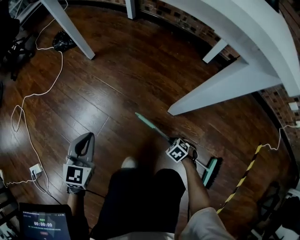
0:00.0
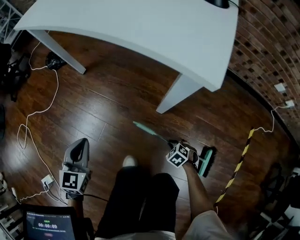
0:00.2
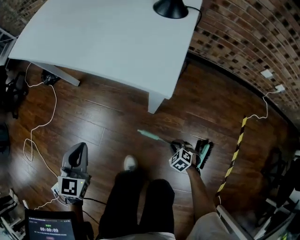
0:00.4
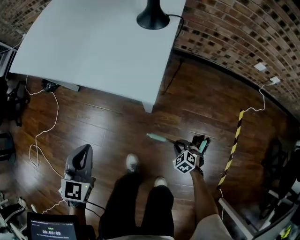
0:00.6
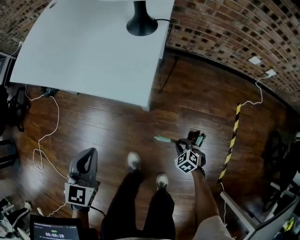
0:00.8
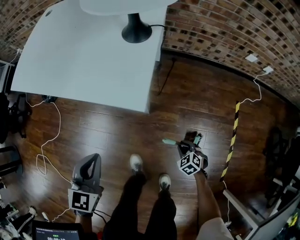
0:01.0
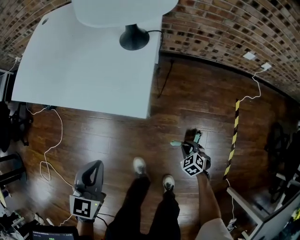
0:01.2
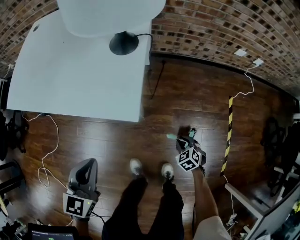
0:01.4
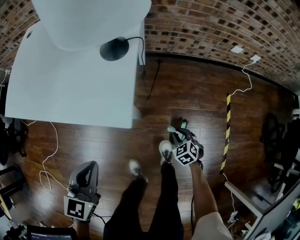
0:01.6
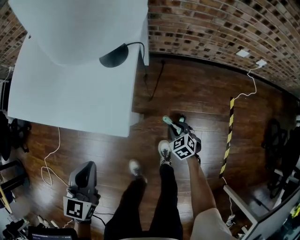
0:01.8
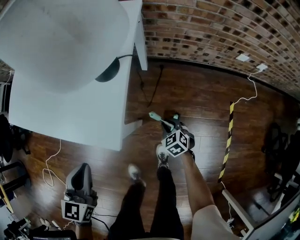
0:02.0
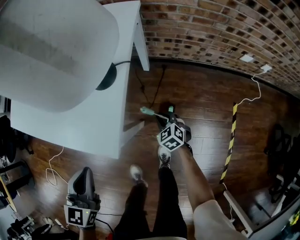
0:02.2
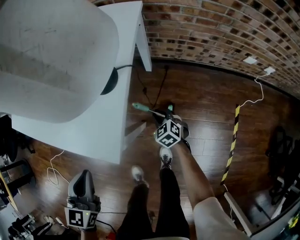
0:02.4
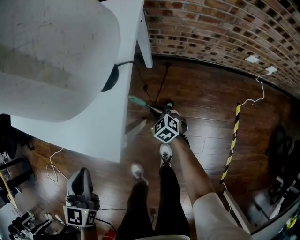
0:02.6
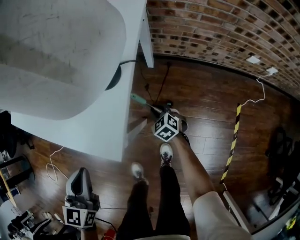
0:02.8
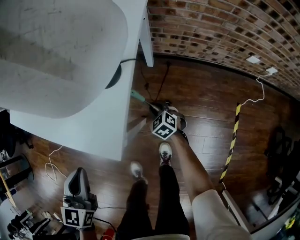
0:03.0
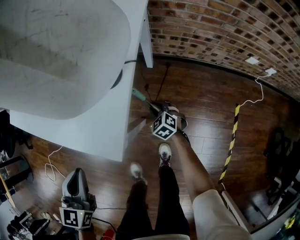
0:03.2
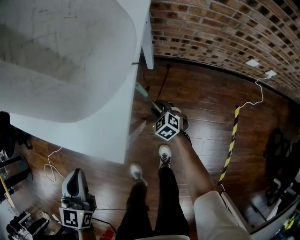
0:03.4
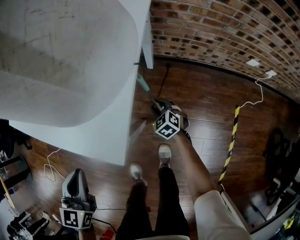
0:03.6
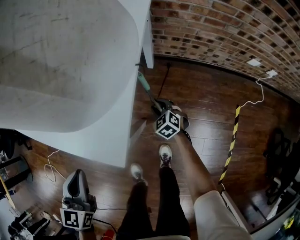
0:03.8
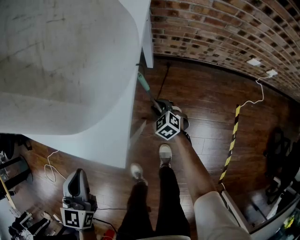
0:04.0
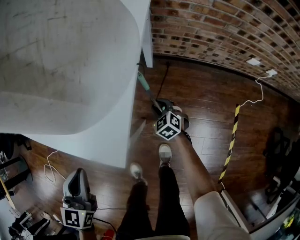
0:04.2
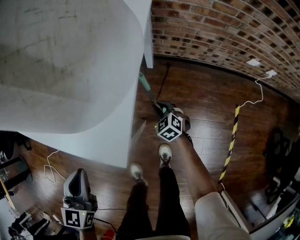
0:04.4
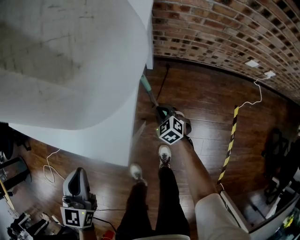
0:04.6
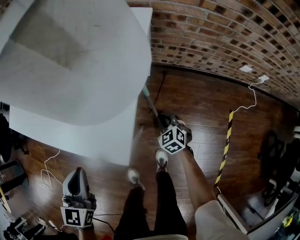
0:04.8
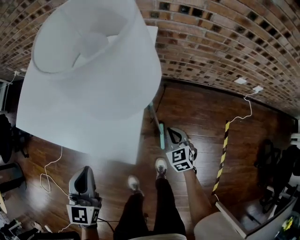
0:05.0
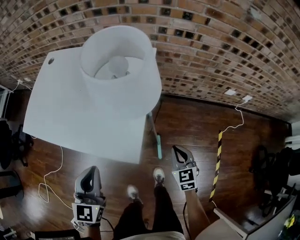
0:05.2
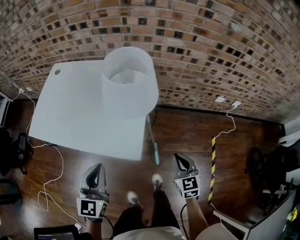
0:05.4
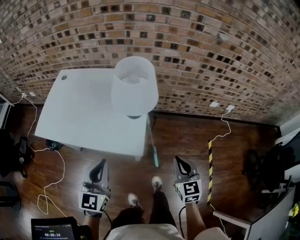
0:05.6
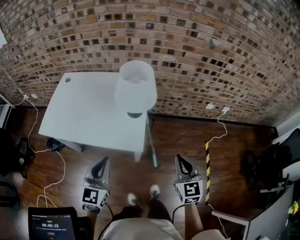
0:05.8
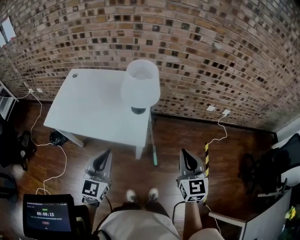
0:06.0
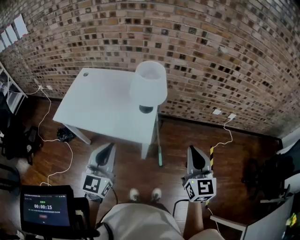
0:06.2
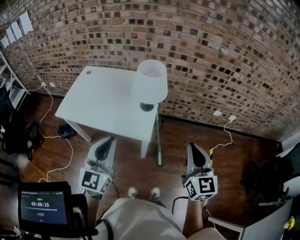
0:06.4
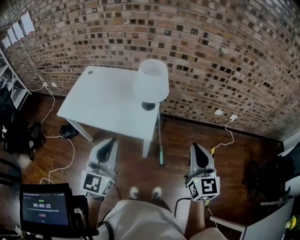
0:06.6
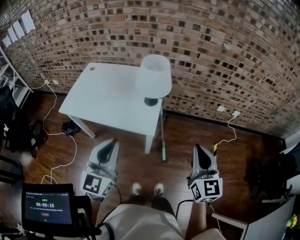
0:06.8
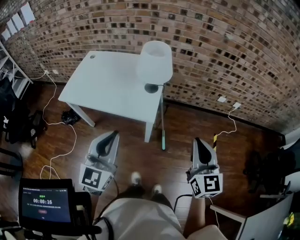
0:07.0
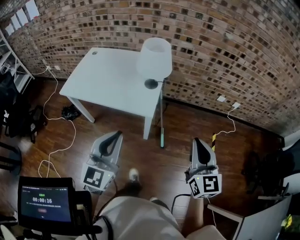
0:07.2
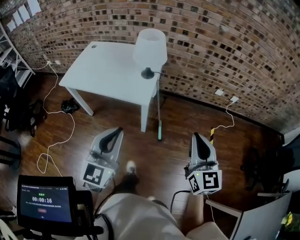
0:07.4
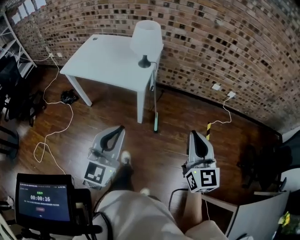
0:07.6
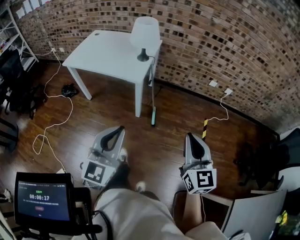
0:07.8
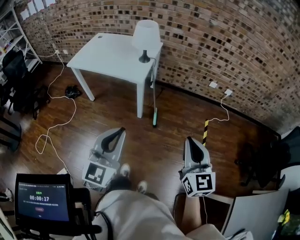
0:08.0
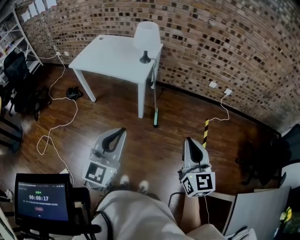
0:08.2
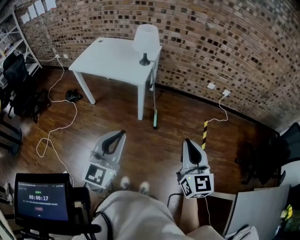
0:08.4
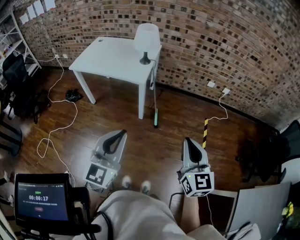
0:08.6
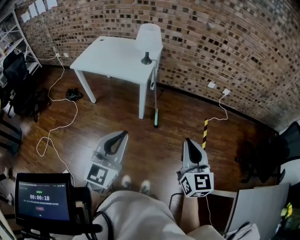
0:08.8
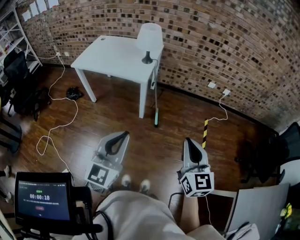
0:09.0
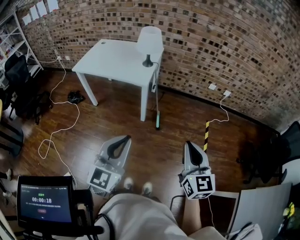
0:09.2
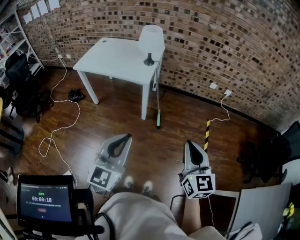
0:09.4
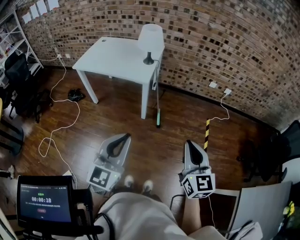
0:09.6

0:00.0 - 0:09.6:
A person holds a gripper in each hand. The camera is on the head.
0:00.0 - 0:01.6: Both grippers travel together upward, some 40 cm. The left gripper changes its angle by about 30 degrees; the right gripper changes its angle by roughly 40 degrees.
0:01.6 - 0:03.2: The right gripper shifts approximately 25 cm forward, while the left gripper travels forward by roughly 10 cm, and changes its angle by roughly 20 degrees.
0:03.2 - 0:04.8: The right gripper goes roughly 5 cm upward, and closes.
0:04.8 - 0:06.4: The right gripper travels upward and backward by approximately 70 cm, and points its fingers roughly 40 degrees further upward. The left gripper moves upward and backward, some 35 cm, and tilts its fingers approximately 30 degrees upward.
0:06.4 - 0:08.0: The left gripper is displaced backward and to the right by roughly 40 cm, while the right gripper travels backward by about 35 cm.
0:08.0 - 0:09.6: The two grippers go approximately 5 cm backward.

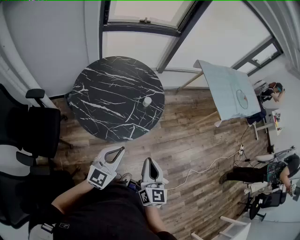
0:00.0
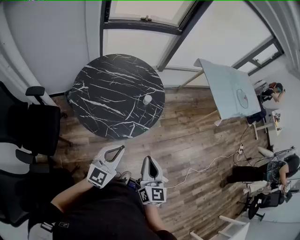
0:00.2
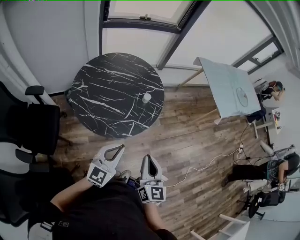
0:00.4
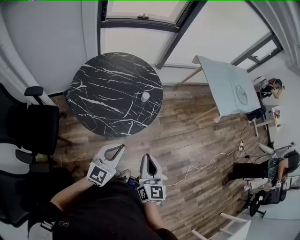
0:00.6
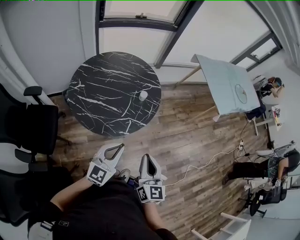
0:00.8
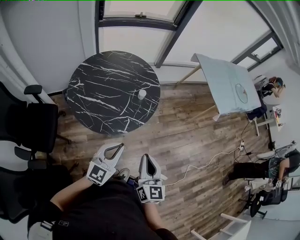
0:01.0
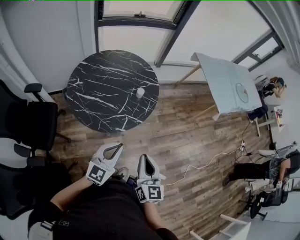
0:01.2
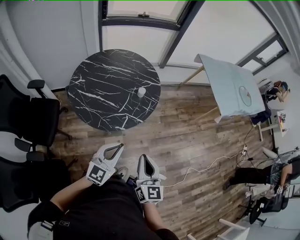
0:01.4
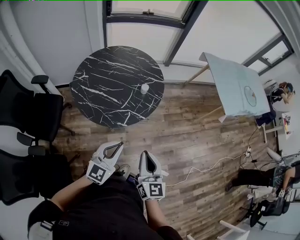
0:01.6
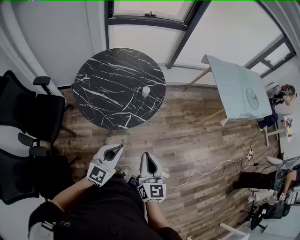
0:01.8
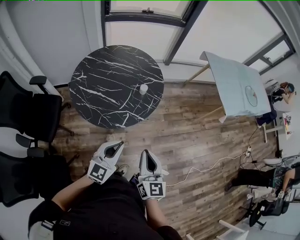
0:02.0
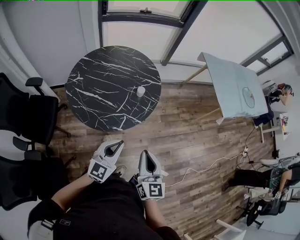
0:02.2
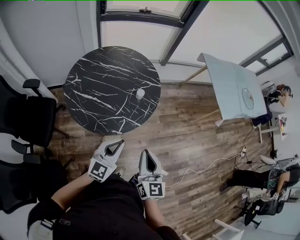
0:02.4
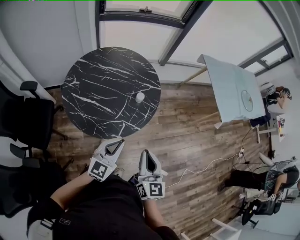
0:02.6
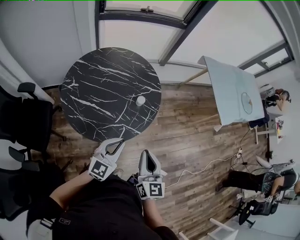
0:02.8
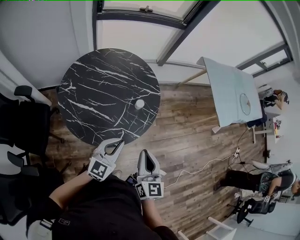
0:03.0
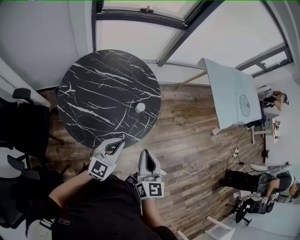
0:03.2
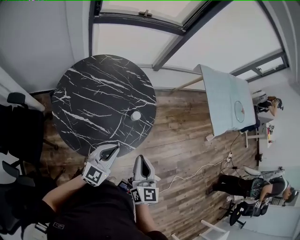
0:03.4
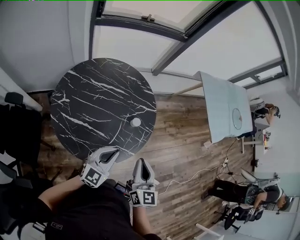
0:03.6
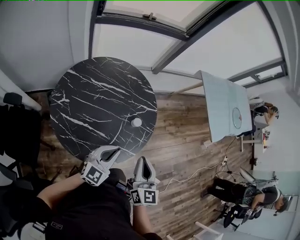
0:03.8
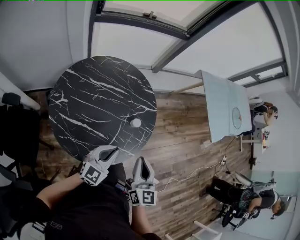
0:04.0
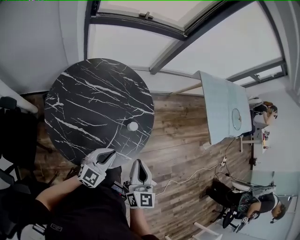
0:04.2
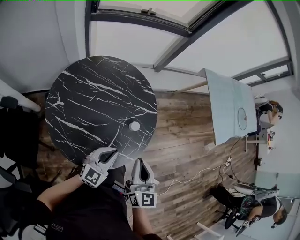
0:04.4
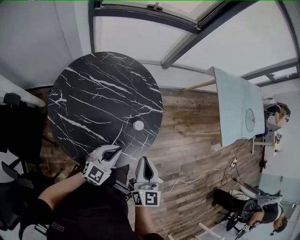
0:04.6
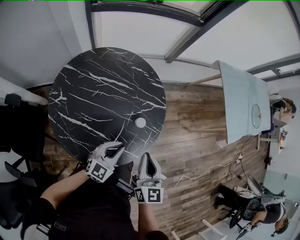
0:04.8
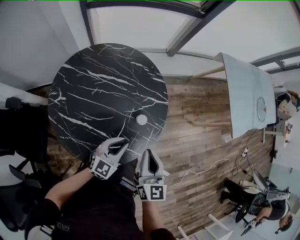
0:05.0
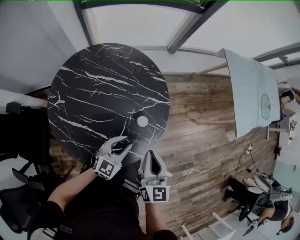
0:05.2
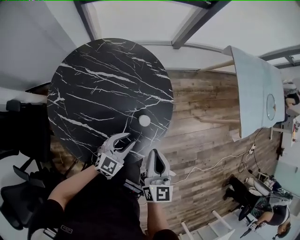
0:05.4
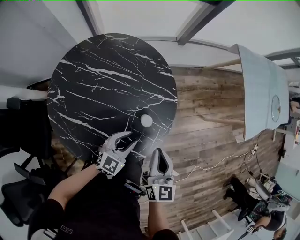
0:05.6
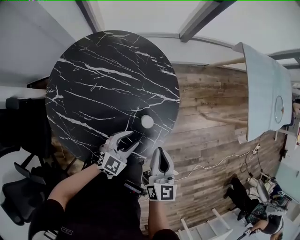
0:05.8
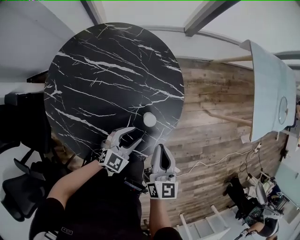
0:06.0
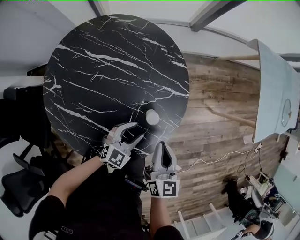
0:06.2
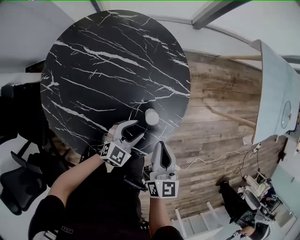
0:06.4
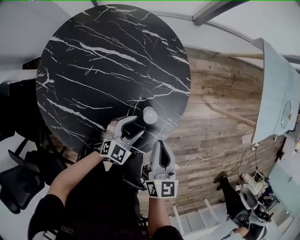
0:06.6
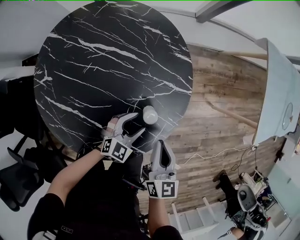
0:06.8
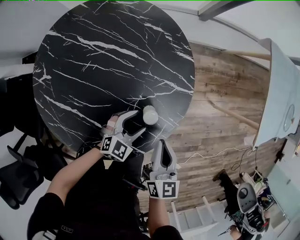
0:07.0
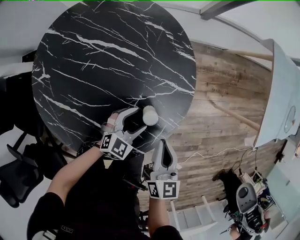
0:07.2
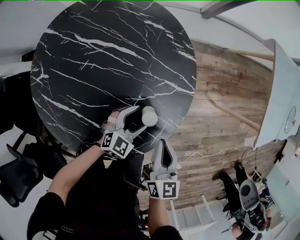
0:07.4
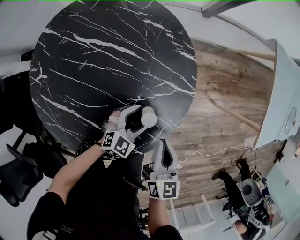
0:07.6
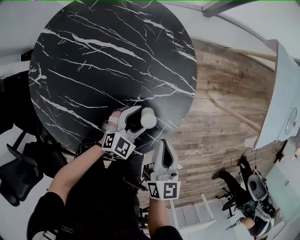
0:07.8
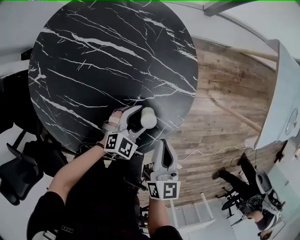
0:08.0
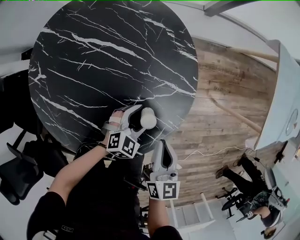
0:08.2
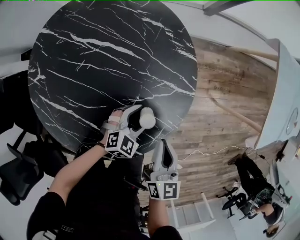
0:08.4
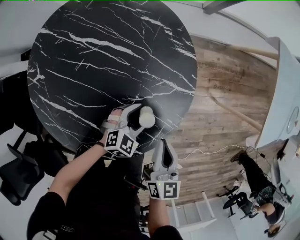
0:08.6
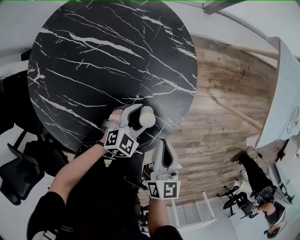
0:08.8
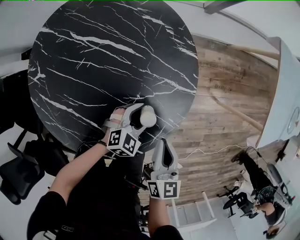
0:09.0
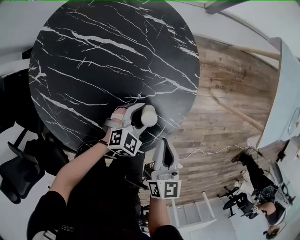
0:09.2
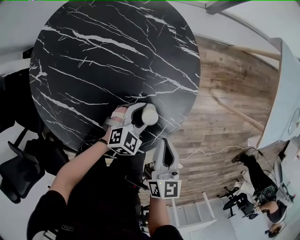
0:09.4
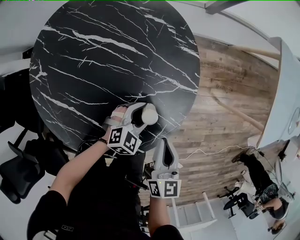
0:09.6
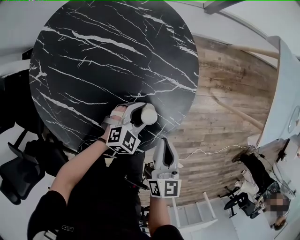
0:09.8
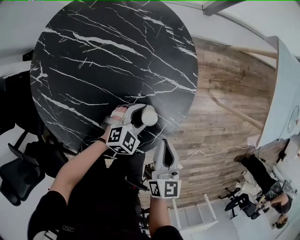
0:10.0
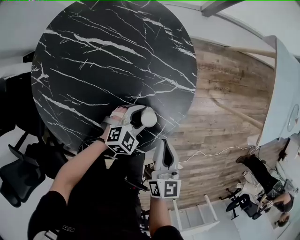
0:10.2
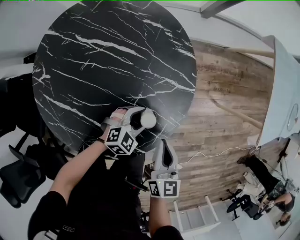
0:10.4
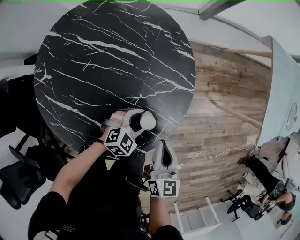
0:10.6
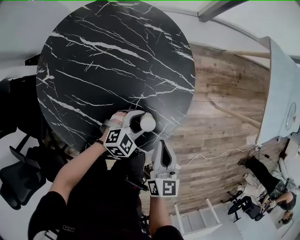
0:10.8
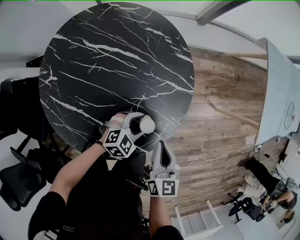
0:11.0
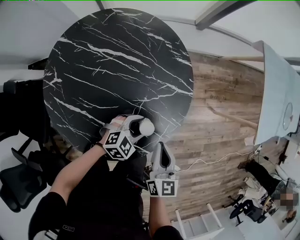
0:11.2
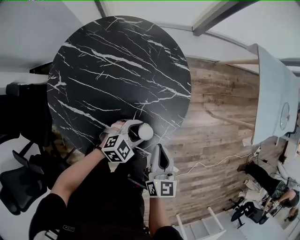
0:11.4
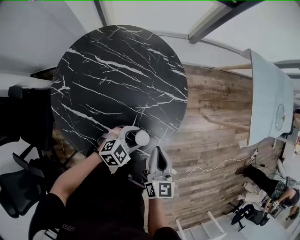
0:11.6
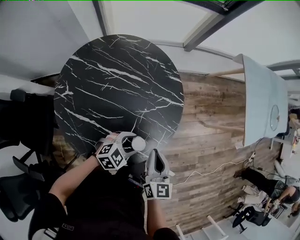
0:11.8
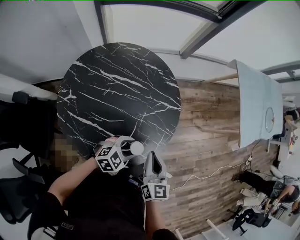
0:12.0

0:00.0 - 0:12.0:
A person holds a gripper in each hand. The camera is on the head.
0:00.0 - 0:01.6: Both grippers move to the right, approximately 10 cm.
0:01.6 - 0:03.0: The grippers both shift forward by roughly 20 cm.
0:03.0 - 0:04.4: The left gripper moves forward and downward, about 15 cm, while the right gripper goes about 15 cm forward and to the left.
0:04.4 - 0:06.0: Both grippers travel together downward and forward, some 20 cm. The left gripper opens its fingers.
0:06.0 - 0:07.6: The right gripper goes approximately 5 cm downward. Meanwhile the left gripper shifts roughly 10 cm downward and forward, and opens up.
0:07.6 - 0:10.4: The grippers move only a little.
0:10.4 - 0:12.0: Both grippers move upward and backward, roughly 15 cm.

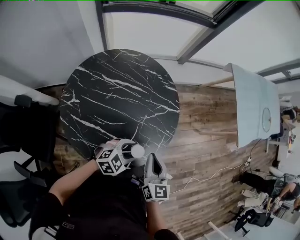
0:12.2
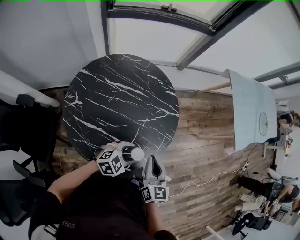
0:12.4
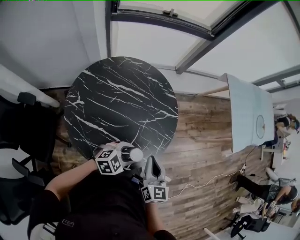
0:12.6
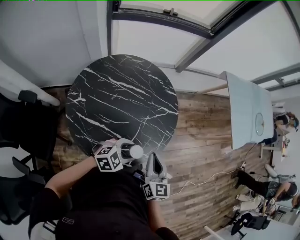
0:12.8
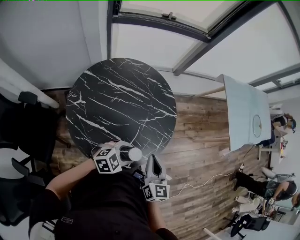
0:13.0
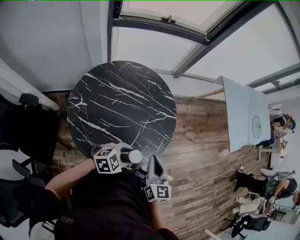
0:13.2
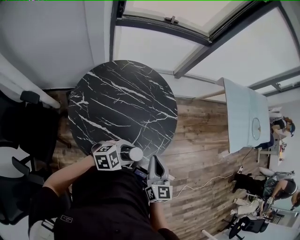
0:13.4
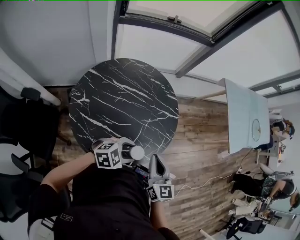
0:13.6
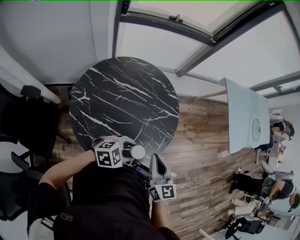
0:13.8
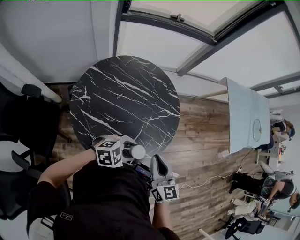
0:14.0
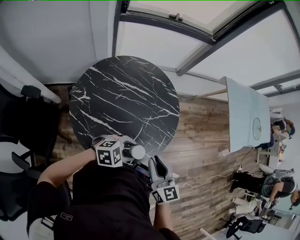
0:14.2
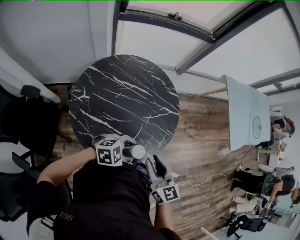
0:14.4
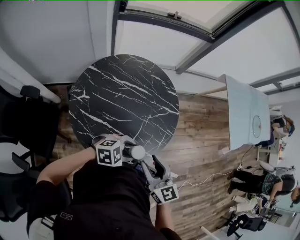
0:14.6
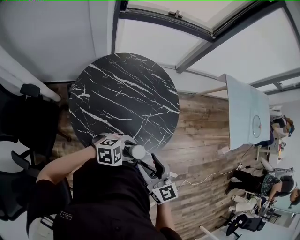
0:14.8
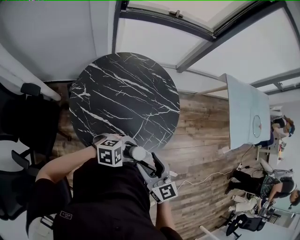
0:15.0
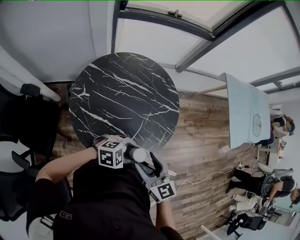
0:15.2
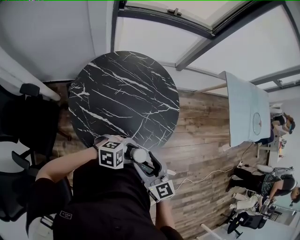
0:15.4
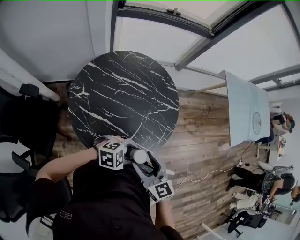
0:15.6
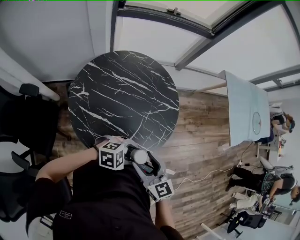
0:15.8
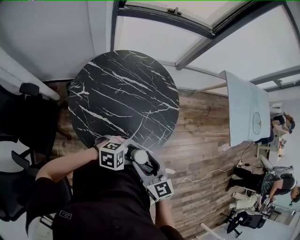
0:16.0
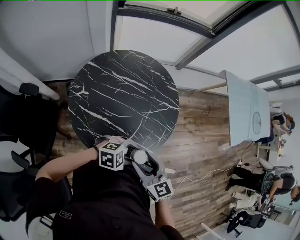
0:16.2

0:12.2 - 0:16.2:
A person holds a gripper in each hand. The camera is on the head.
0:12.2 - 0:13.6: The left gripper goes roughly 10 cm upward and backward. Meanwhile the right gripper is displaced upward by approximately 5 cm.
0:13.6 - 0:14.8: The right gripper moves approximately 5 cm, changes its angle by about 20 degrees, and opens up.
0:14.8 - 0:16.2: The grippers make only small movements.
